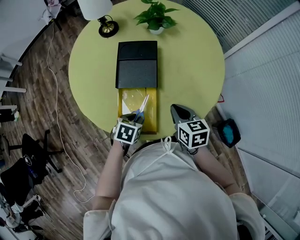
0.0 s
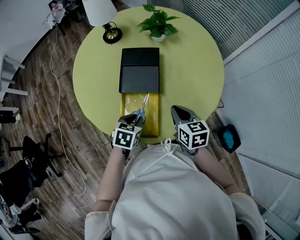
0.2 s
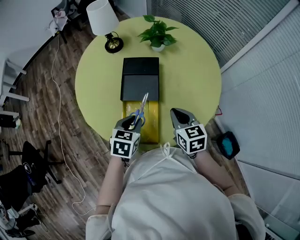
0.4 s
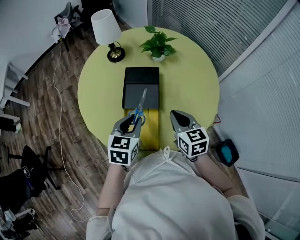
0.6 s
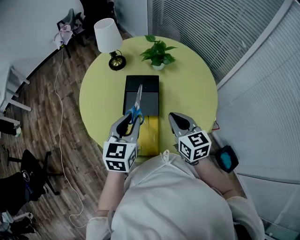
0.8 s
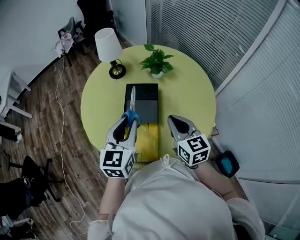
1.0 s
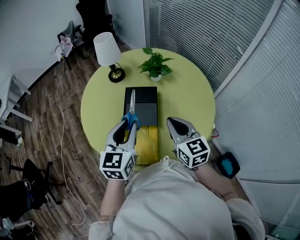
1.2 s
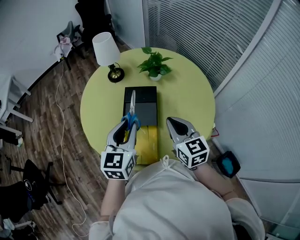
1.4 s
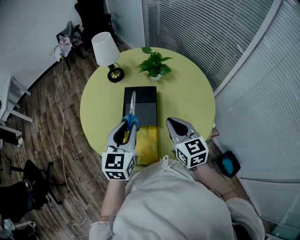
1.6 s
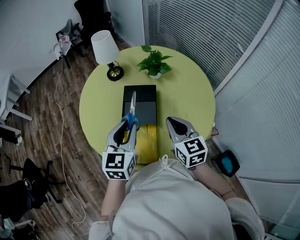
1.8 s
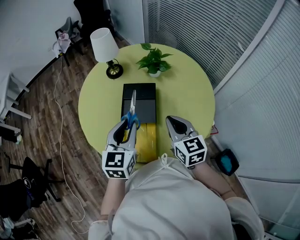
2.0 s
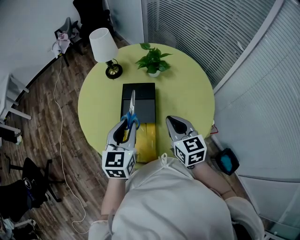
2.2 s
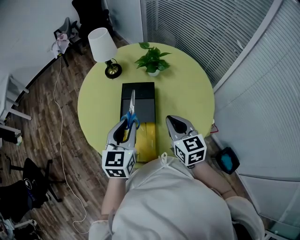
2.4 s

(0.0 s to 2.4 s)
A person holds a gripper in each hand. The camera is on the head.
0.0 s - 1.2 s: The right gripper moves upward, some 20 cm, and swivels approximately 30 degrees. Meanwhile the left gripper shifts about 30 cm upward, and points its fingers roughly 50 degrees further upward.
1.2 s - 2.4 s: The grippers move only a little.

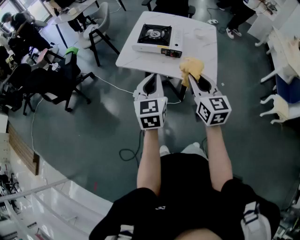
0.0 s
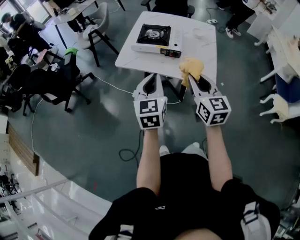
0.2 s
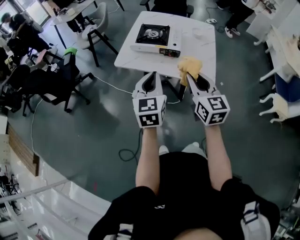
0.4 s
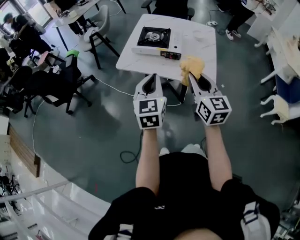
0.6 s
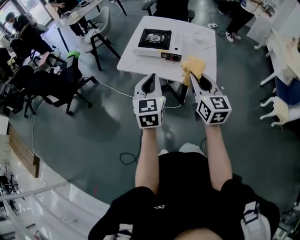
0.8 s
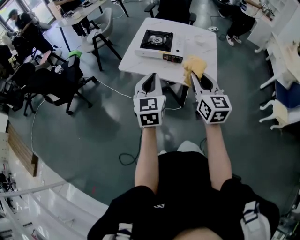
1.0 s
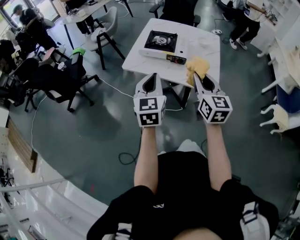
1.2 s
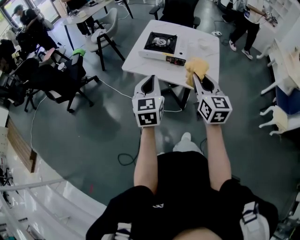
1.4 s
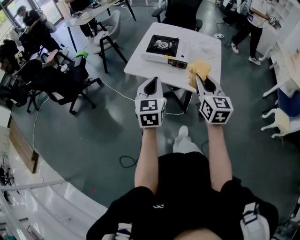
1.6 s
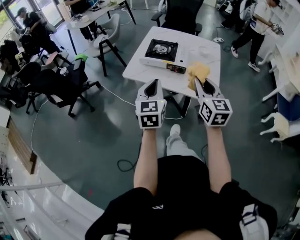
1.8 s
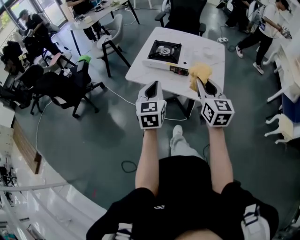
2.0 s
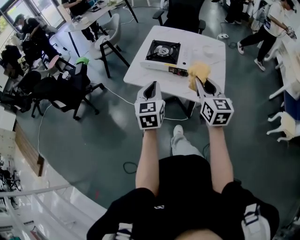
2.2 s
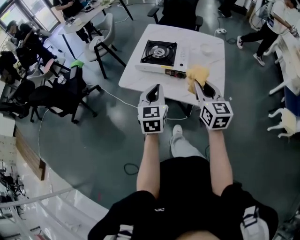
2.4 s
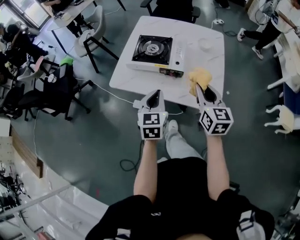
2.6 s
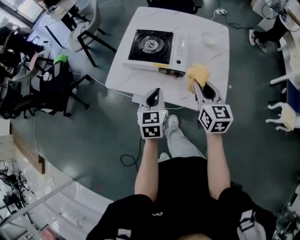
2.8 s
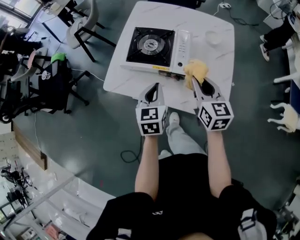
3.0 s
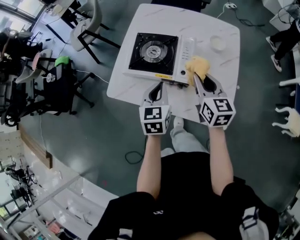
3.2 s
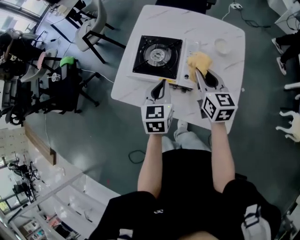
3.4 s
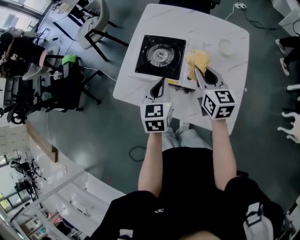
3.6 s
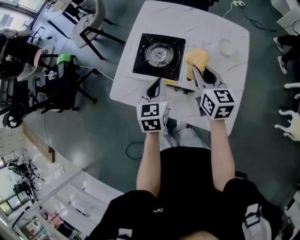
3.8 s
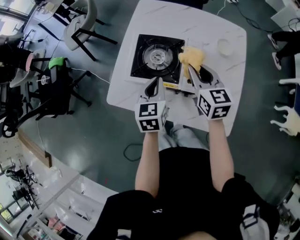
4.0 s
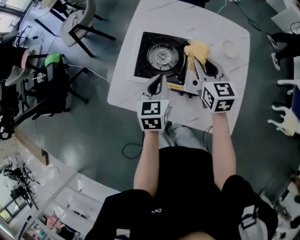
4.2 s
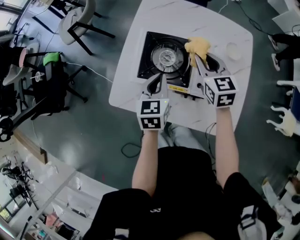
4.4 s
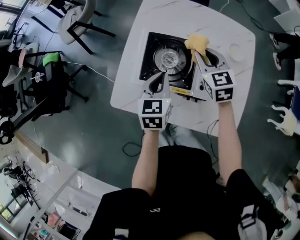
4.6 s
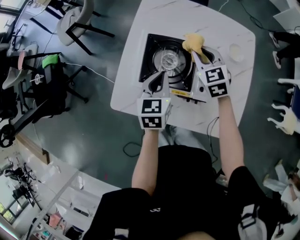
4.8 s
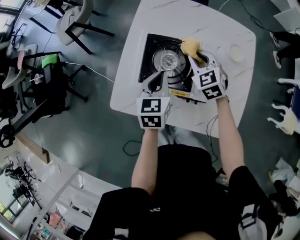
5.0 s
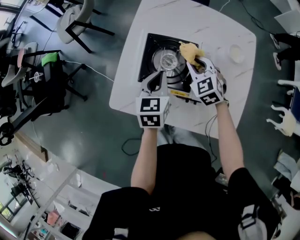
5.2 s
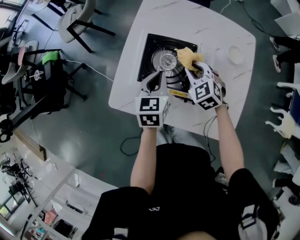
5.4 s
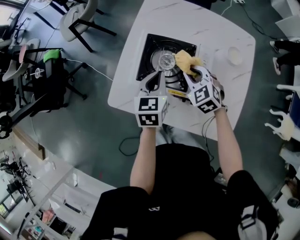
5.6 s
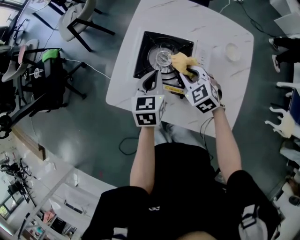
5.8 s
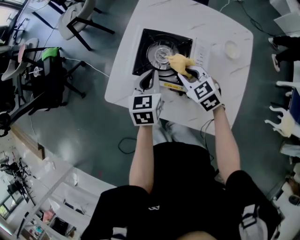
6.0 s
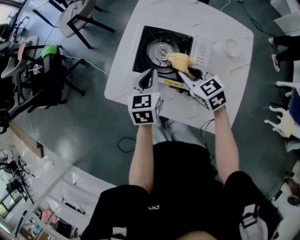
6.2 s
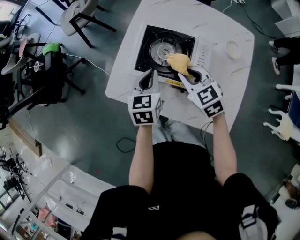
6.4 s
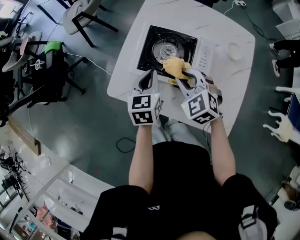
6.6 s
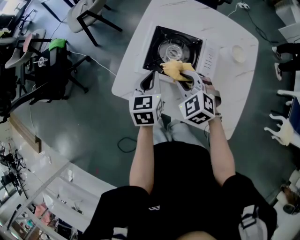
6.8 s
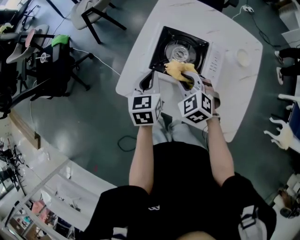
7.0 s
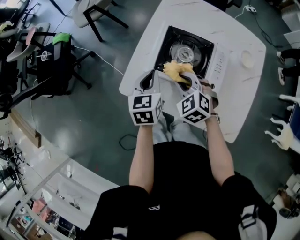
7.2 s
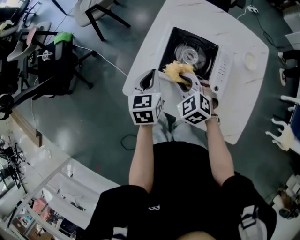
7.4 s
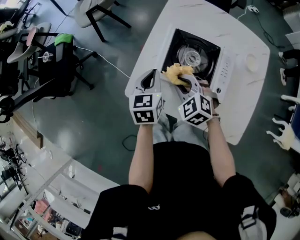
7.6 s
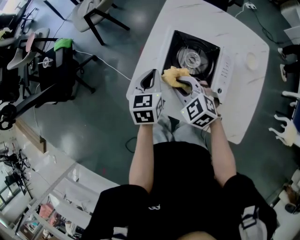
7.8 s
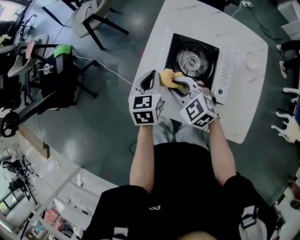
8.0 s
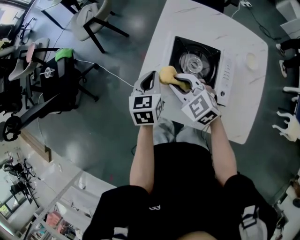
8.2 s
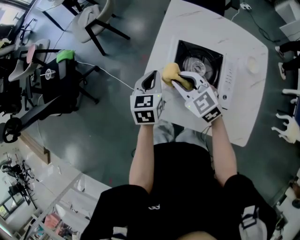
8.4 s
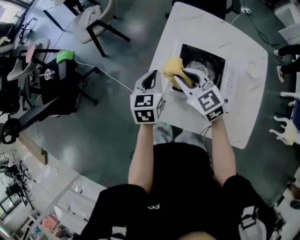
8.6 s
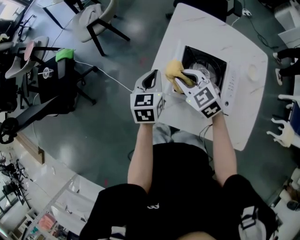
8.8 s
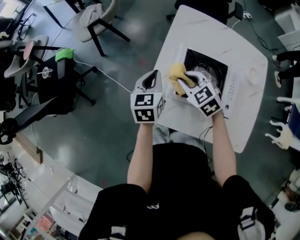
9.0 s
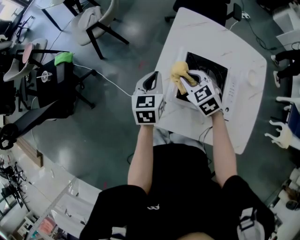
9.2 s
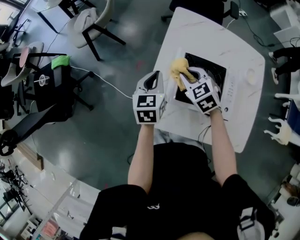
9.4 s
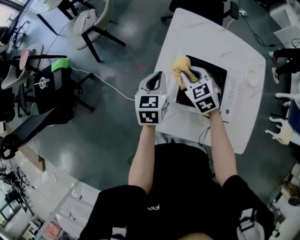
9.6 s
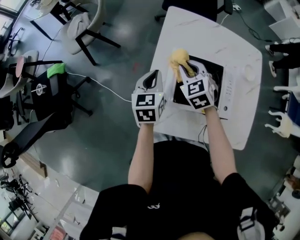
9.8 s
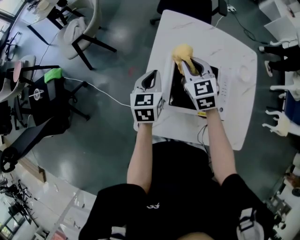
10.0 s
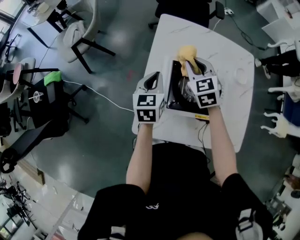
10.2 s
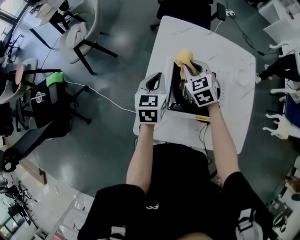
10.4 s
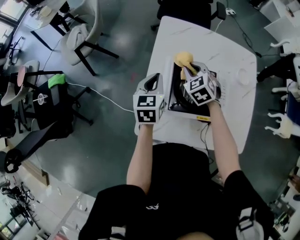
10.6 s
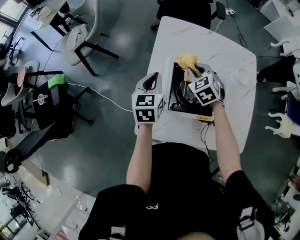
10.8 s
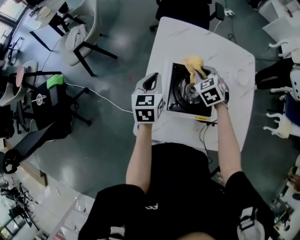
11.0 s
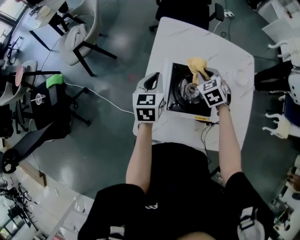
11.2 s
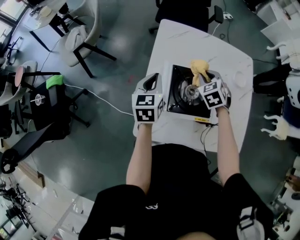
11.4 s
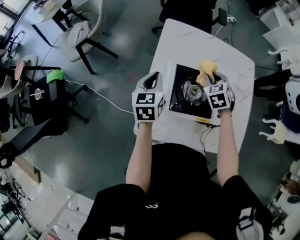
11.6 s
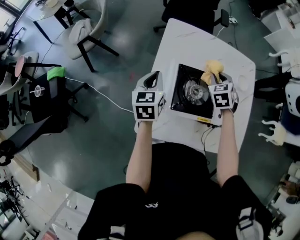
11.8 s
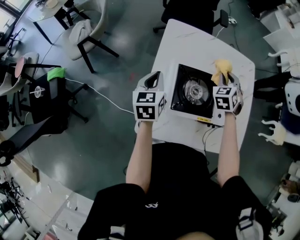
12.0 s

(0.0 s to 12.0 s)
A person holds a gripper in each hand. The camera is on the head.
0.0 s - 1.6 s: The grippers make only small movements.
1.6 s - 3.0 s: Both grippers travel together forward and downward, approximately 30 cm.
3.0 s - 4.4 s: The two grippers go approximately 20 cm forward.
4.4 s - 6.0 s: The right gripper moves downward, backward and to the left, some 10 cm, and swivels some 30 degrees.
6.0 s - 7.6 s: Both grippers travel together to the left, about 15 cm.
7.6 s - 9.0 s: The two grippers go approximately 10 cm forward.
9.0 s - 10.4 s: The right gripper is displaced forward and to the right by some 15 cm, and swivels some 20 degrees, while the left gripper travels to the right and forward by approximately 10 cm.
10.4 s - 12.0 s: The right gripper travels to the right by about 15 cm, and rotates roughly 30 degrees.

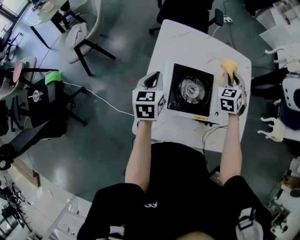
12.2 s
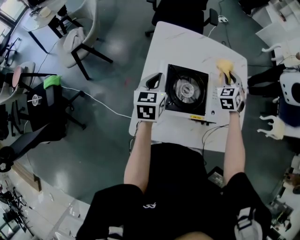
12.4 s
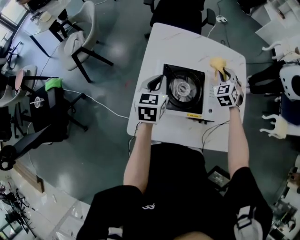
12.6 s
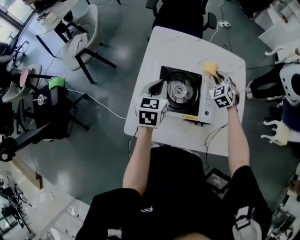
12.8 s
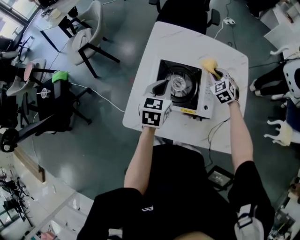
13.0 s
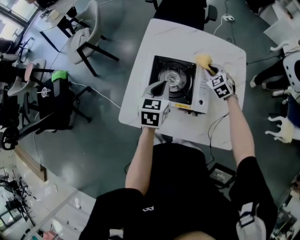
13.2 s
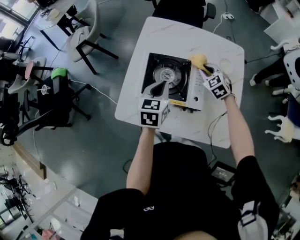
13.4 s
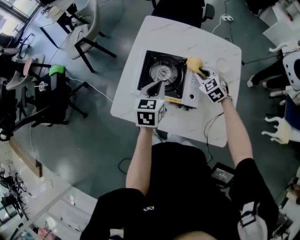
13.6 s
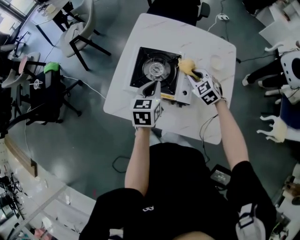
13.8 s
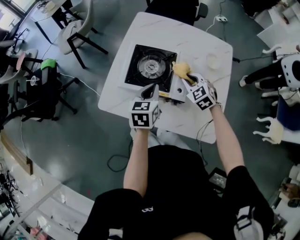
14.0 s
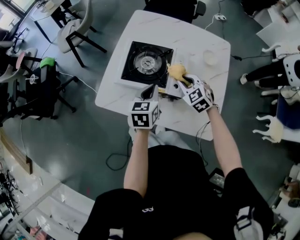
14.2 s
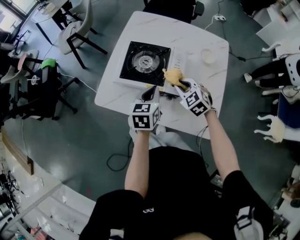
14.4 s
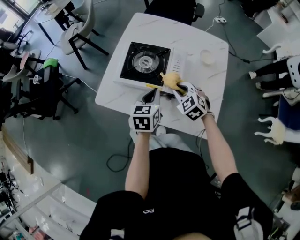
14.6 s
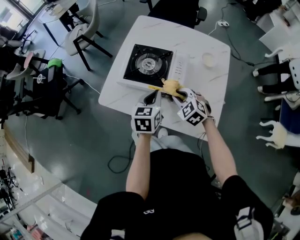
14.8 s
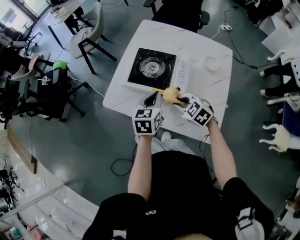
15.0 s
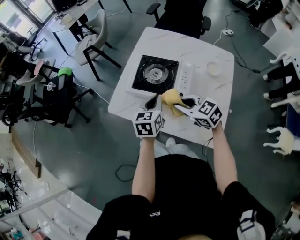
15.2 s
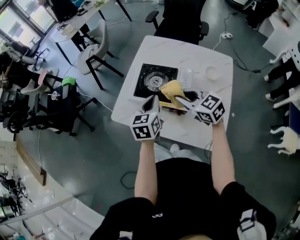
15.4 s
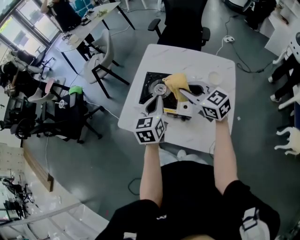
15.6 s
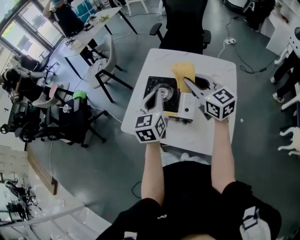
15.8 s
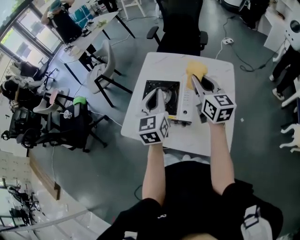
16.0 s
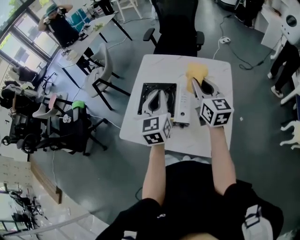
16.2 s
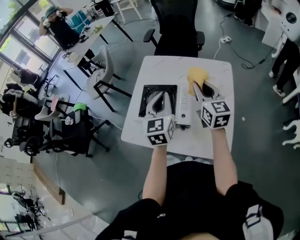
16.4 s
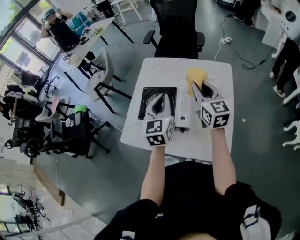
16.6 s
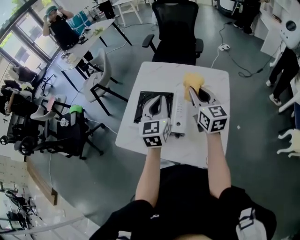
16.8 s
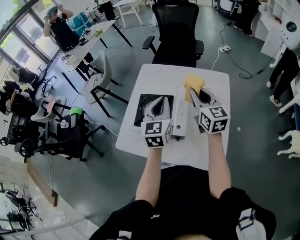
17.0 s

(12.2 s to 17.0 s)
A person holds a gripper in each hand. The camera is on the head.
12.2 s - 13.8 s: The left gripper ends up roughly 20 cm from where it was, while the right gripper moves approximately 15 cm, and swivels approximately 40 degrees.
13.8 s - 15.4 s: The right gripper shifts about 20 cm upward, backward and to the left, and rotates roughly 30 degrees. Meanwhile the left gripper moves backward, approximately 5 cm.
15.4 s - 17.0 s: The left gripper heads upward, to the right and forward, covering about 15 cm; the right gripper goes roughly 20 cm to the right, upward and forward, and changes its angle by about 40 degrees.

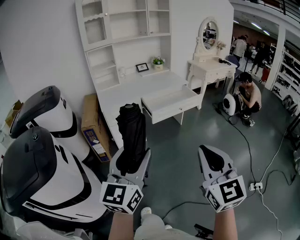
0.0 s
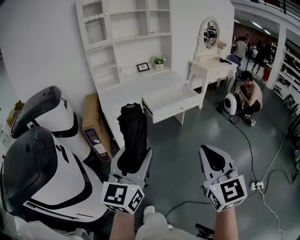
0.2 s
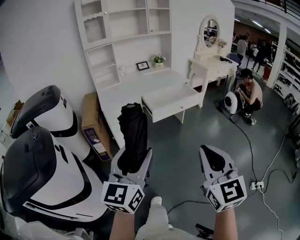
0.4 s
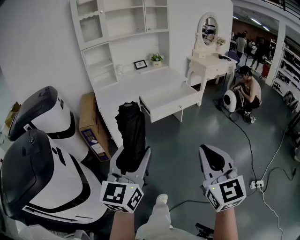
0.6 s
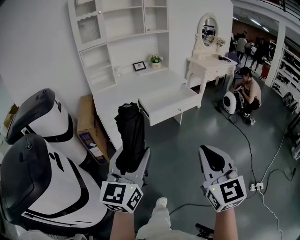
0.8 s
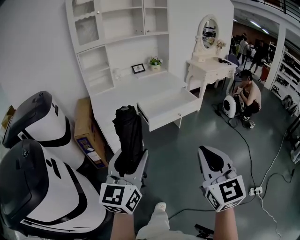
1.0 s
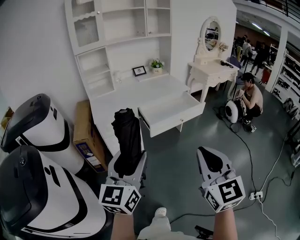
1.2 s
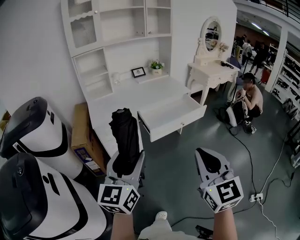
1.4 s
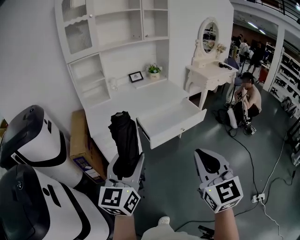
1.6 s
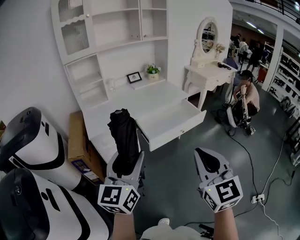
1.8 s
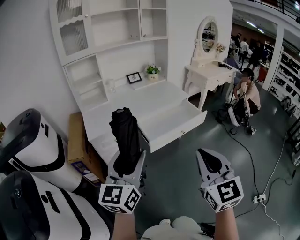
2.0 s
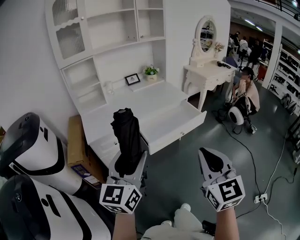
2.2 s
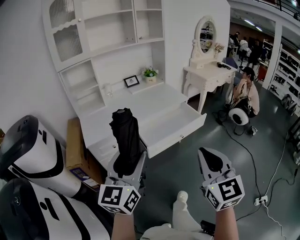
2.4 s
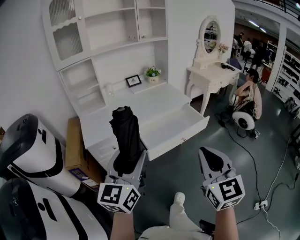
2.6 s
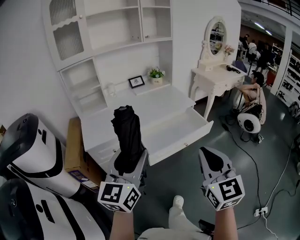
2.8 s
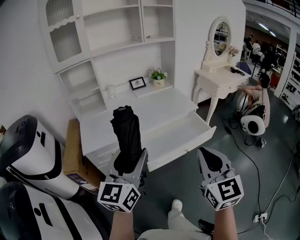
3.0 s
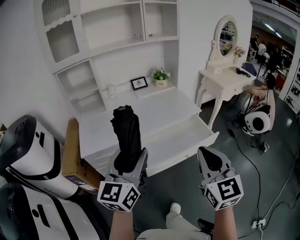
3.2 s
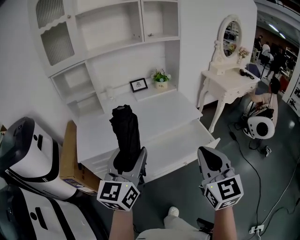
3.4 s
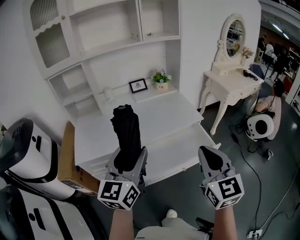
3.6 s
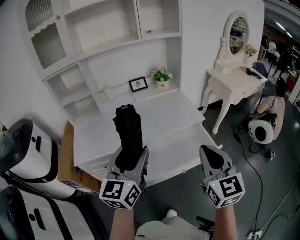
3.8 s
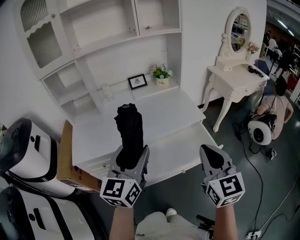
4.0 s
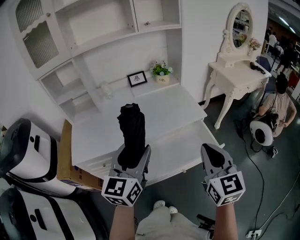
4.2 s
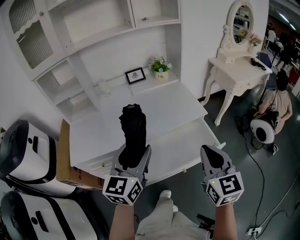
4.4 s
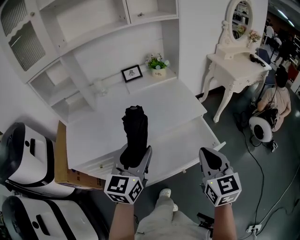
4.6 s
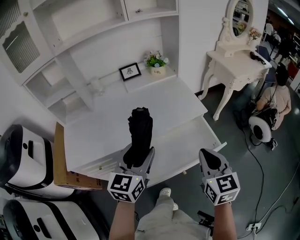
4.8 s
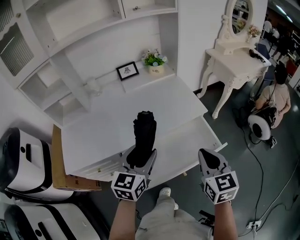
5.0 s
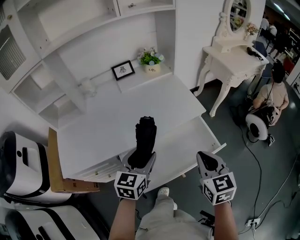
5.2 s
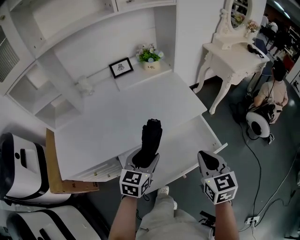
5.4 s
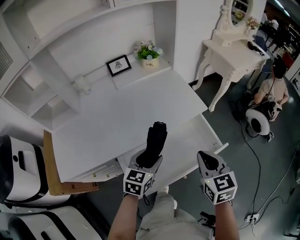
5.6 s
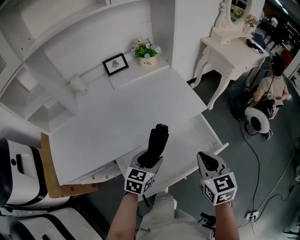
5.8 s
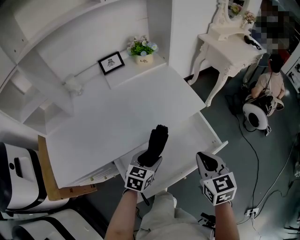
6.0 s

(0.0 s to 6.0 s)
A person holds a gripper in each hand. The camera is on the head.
0.0 s - 1.6 s: Both grippers travel together forward, some 25 cm.
1.6 s - 3.0 s: Both grippers travel together forward, about 20 cm.
3.0 s - 4.4 s: Both grippers travel together forward and to the right, roughly 25 cm.
4.4 s - 6.0 s: The left gripper is displaced downward and forward by about 30 cm, and tips its fingers downward by roughly 30 degrees. The right gripper shifts about 15 cm downward and forward, and changes its angle by about 20 degrees.
